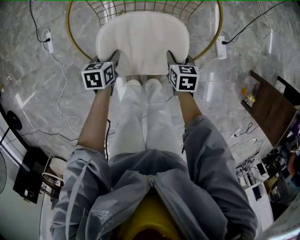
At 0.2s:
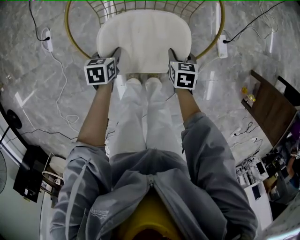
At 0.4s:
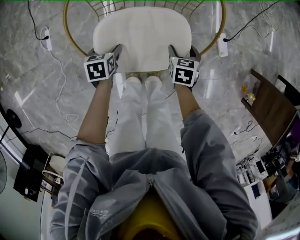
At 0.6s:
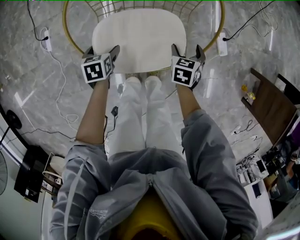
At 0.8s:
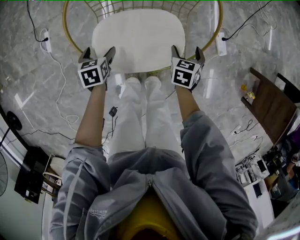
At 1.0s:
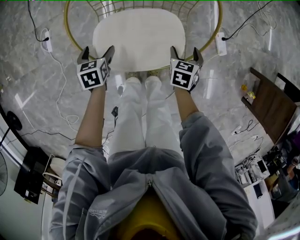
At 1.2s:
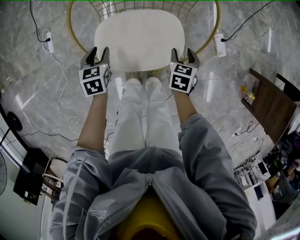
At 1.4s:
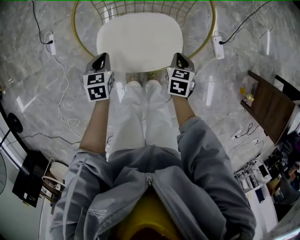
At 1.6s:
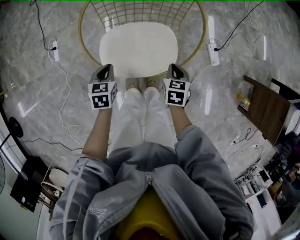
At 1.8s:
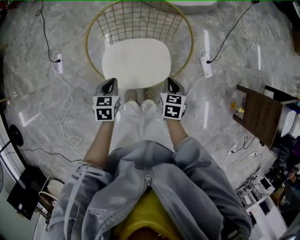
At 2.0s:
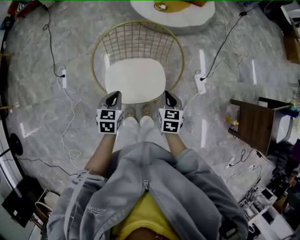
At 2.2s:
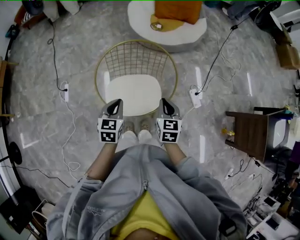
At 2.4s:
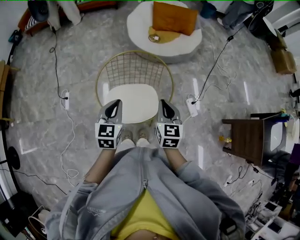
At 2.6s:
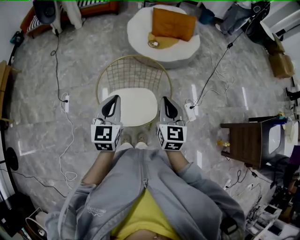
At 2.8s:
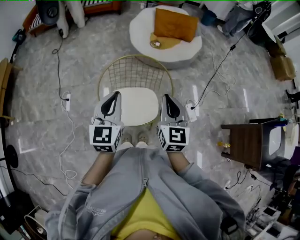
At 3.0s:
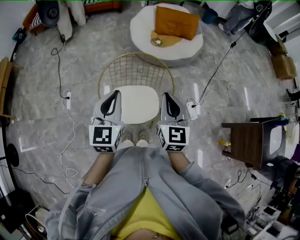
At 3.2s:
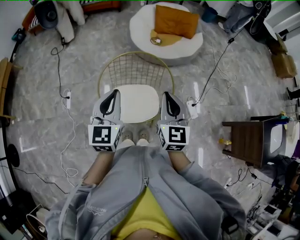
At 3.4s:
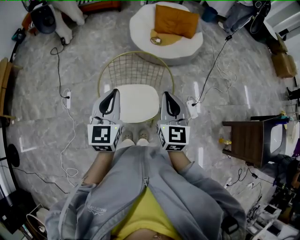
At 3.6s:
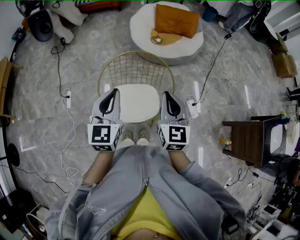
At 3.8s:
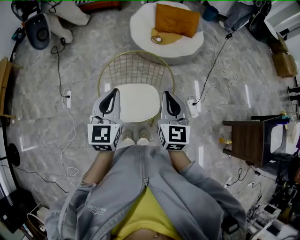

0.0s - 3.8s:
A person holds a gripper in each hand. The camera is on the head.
0.0s - 1.2s: The right gripper opens, then closes again; the left gripper shifts by approximately 5 cm, and opens and closes again.
1.2s - 2.6s: Both grippers move upward, about 40 cm. The left gripper points its fingers roughly 40 degrees further upward, and closes. Meanwhile the right gripper tips its fingers upward by about 40 degrees, and closes its fingers.
2.6s - 3.8s: The grippers make only small movements.

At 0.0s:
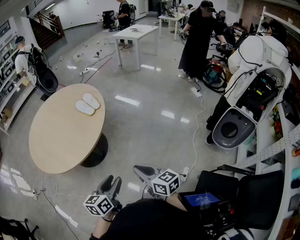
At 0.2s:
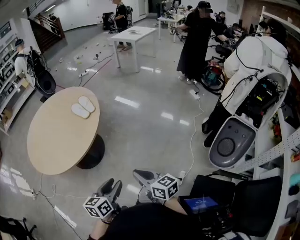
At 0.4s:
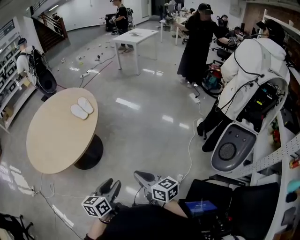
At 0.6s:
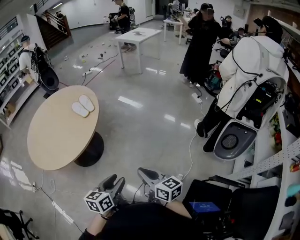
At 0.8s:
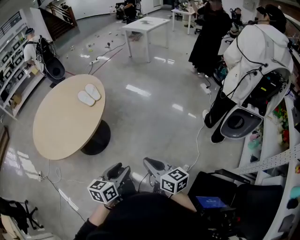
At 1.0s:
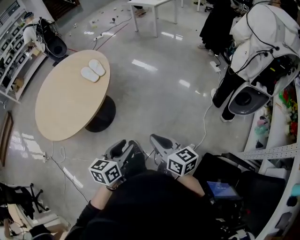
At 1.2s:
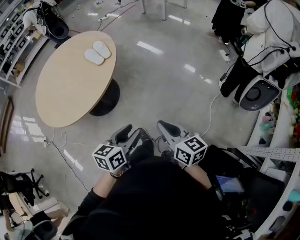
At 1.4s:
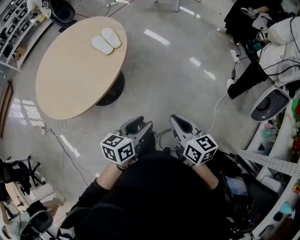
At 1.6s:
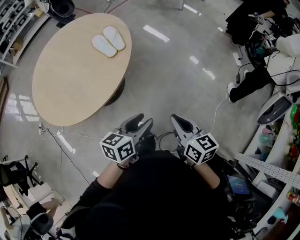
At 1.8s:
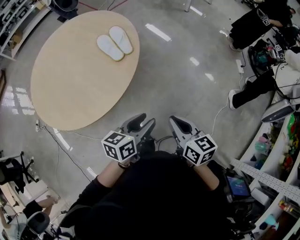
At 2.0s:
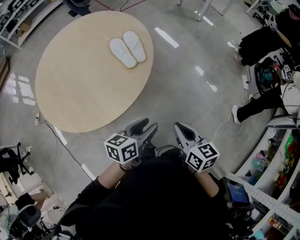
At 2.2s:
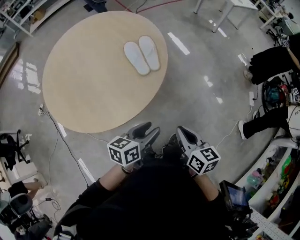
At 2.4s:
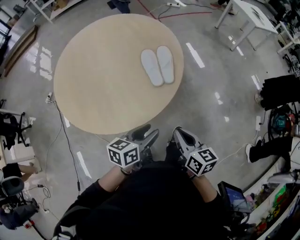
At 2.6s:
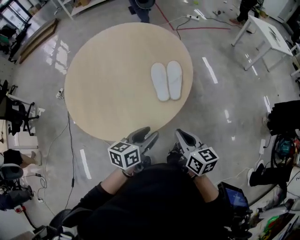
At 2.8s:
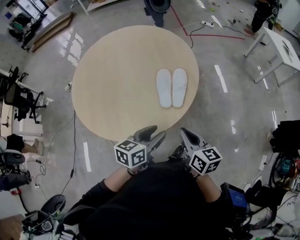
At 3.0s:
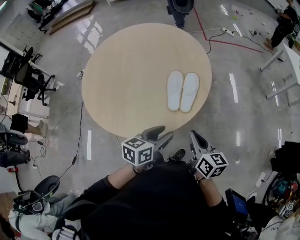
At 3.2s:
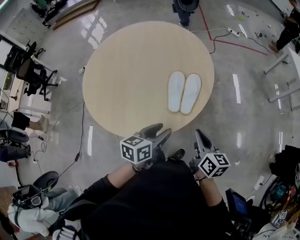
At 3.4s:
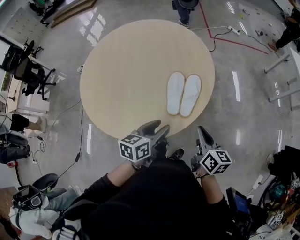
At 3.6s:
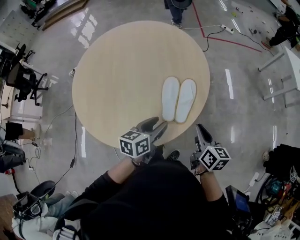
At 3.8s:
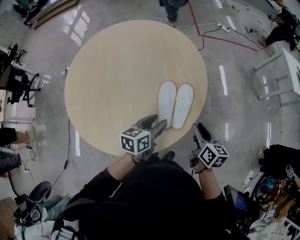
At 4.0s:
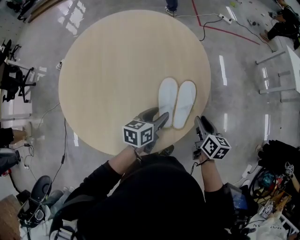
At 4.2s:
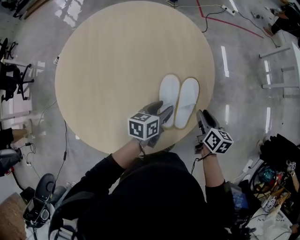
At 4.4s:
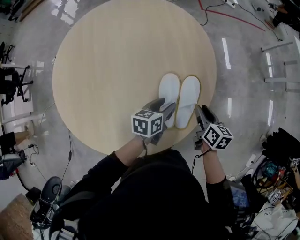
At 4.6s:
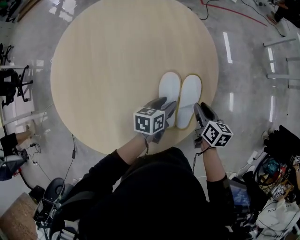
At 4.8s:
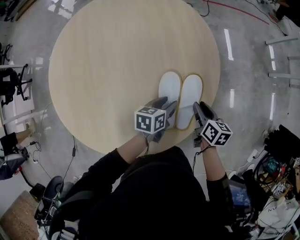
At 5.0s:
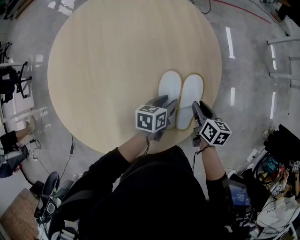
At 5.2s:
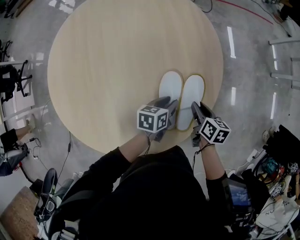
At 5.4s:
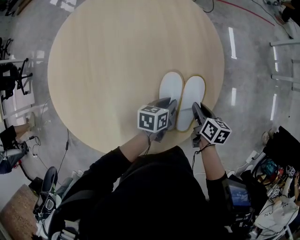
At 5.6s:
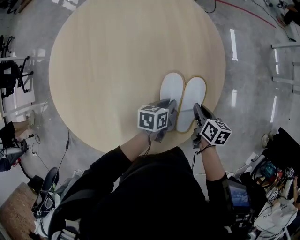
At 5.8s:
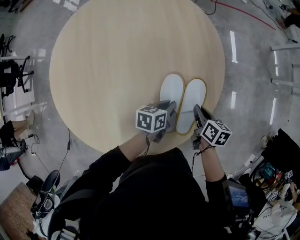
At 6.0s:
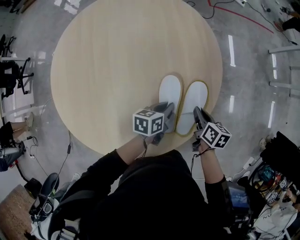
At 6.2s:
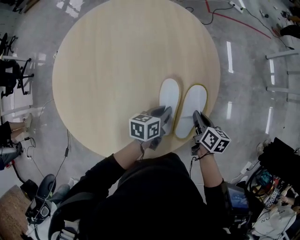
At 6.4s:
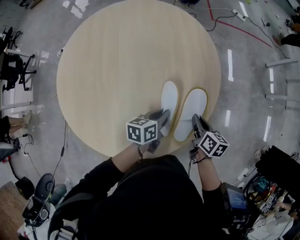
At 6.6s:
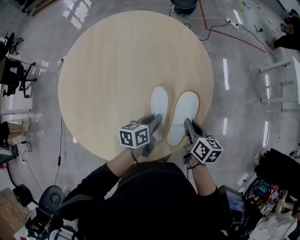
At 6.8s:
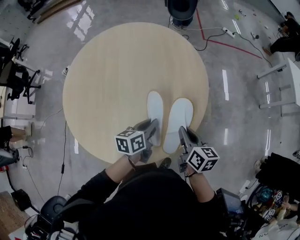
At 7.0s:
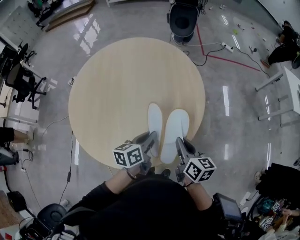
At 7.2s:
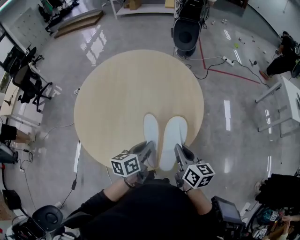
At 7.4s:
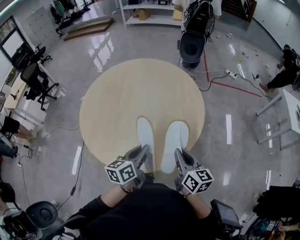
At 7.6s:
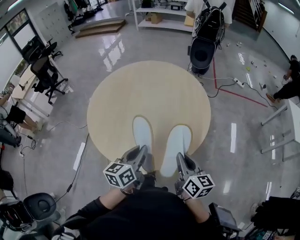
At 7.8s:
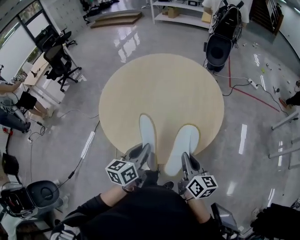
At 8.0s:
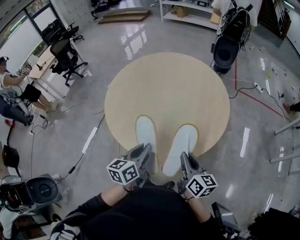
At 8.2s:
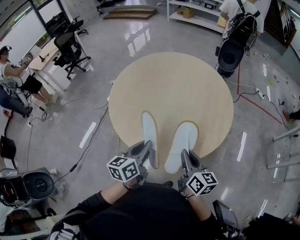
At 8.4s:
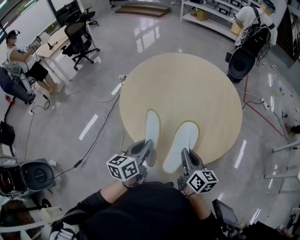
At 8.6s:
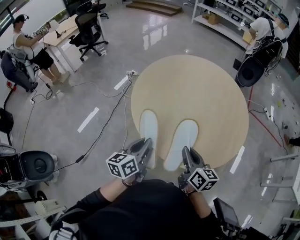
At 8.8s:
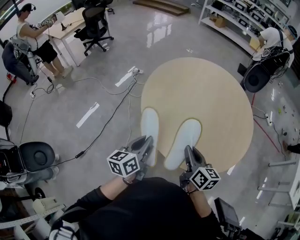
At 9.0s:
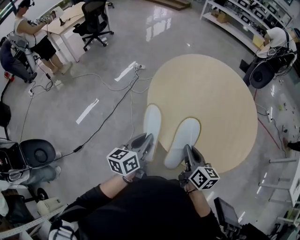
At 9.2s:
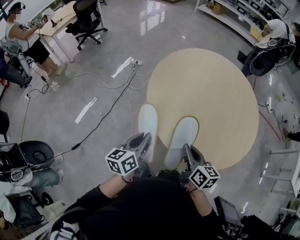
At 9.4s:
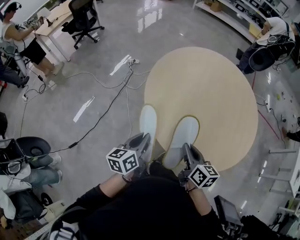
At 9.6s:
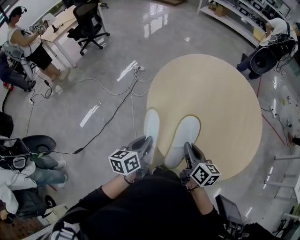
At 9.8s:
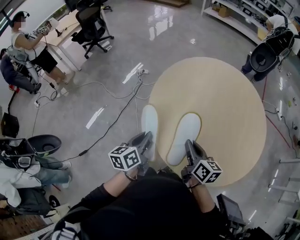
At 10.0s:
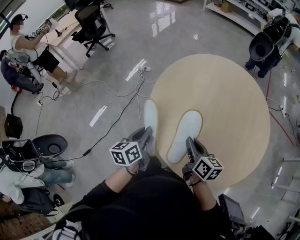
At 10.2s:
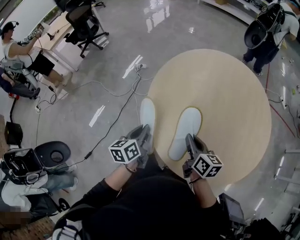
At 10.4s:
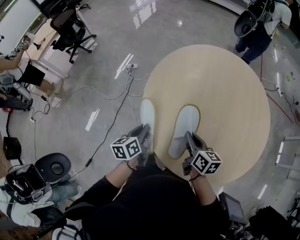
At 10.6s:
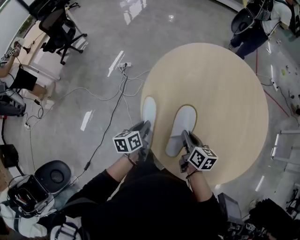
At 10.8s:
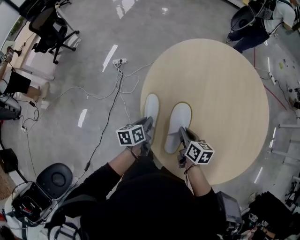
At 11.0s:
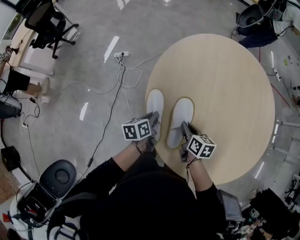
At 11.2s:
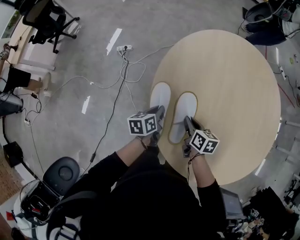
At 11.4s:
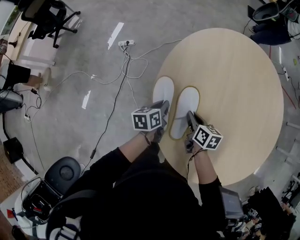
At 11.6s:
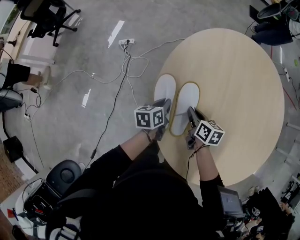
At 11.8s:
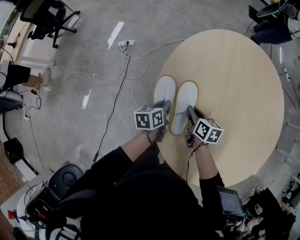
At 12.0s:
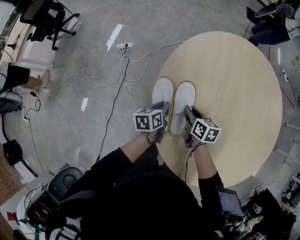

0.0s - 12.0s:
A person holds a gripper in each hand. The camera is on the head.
0.0s - 1.6s: Both grippers move forward, approximately 20 cm.
1.6s - 3.0s: The left gripper moves about 35 cm, and rotates some 40 degrees. Meanwhile the right gripper shifts by some 40 cm, and changes its angle by approximately 30 degrees.
3.0s - 4.4s: The grippers both shift forward and downward by roughly 35 cm. The right gripper changes its angle by roughly 20 degrees, and opens its fingers.
4.4s - 6.0s: The two grippers go about 5 cm downward. The left gripper closes; the right gripper closes up.
6.0s - 7.6s: The two grippers go roughly 25 cm upward. The left gripper changes its angle by roughly 40 degrees. The right gripper angles its fingers upward, by about 30 degrees.
7.6s - 9.0s: Both grippers move to the left, about 40 cm.
9.0s - 10.4s: The left gripper shifts approximately 25 cm forward and downward, while the right gripper heads forward, covering about 25 cm.
10.4s - 12.0s: The right gripper shifts approximately 30 cm forward, downward and to the left. The left gripper moves forward and downward, roughly 30 cm.

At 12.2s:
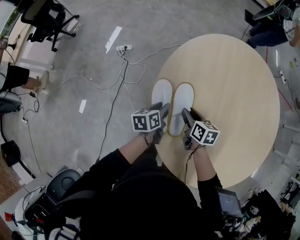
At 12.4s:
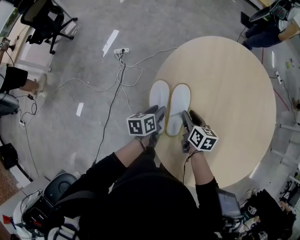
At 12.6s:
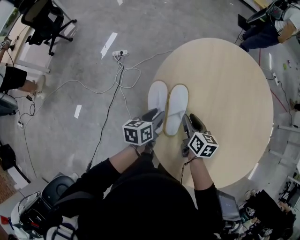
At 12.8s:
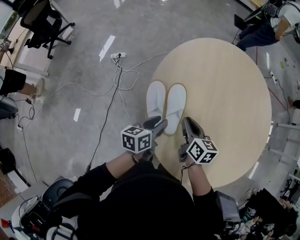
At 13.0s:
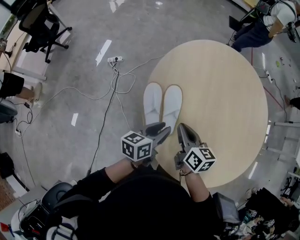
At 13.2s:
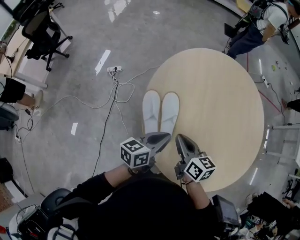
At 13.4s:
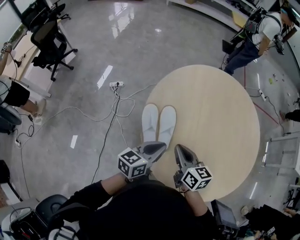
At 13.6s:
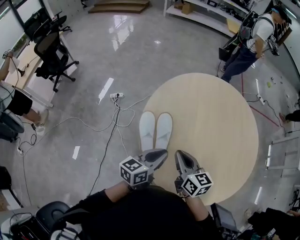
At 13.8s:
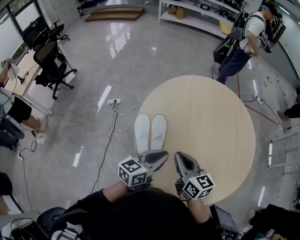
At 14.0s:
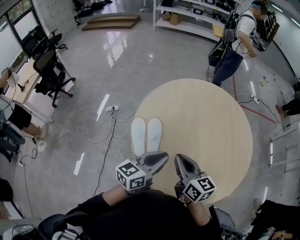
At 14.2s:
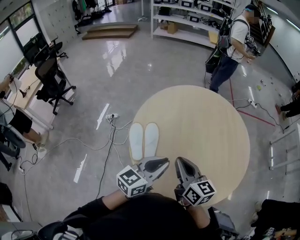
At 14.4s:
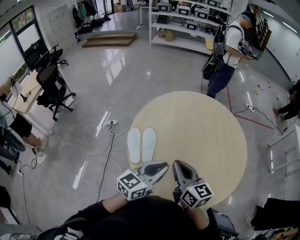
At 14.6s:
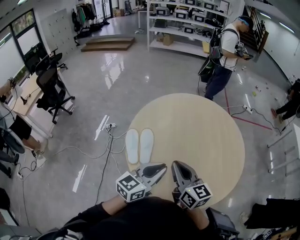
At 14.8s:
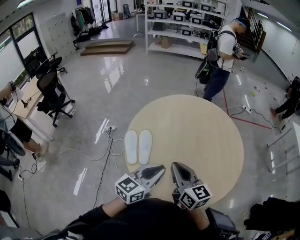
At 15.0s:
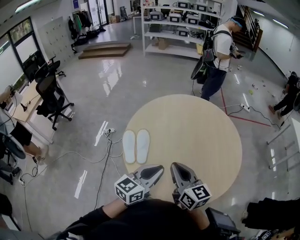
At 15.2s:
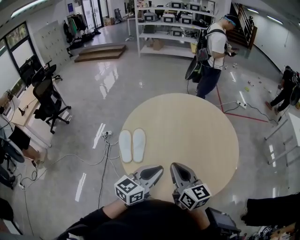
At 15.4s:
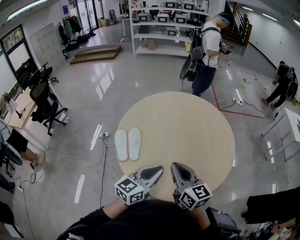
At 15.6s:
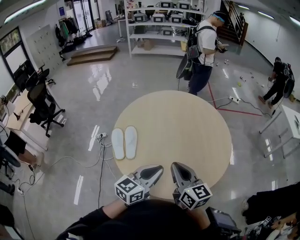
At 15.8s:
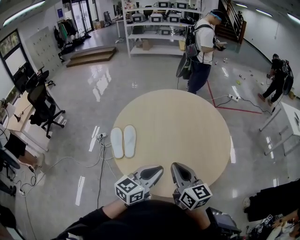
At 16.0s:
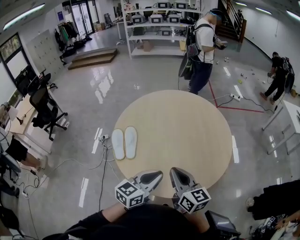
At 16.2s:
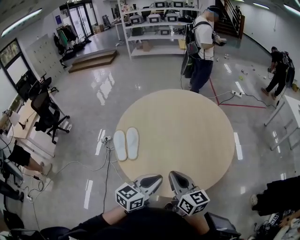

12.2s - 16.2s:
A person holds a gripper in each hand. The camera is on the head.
12.2s - 13.6s: The left gripper is displaced upward, backward and to the right by some 30 cm, turns by some 40 degrees, and closes. The right gripper goes some 25 cm upward and backward, turns by approximately 30 degrees, and closes its fingers.
13.6s - 14.8s: The two grippers go roughly 20 cm to the right, upward and backward. The left gripper swivels roughly 20 degrees.
14.8s - 16.2s: The two grippers go roughly 15 cm to the right and backward.

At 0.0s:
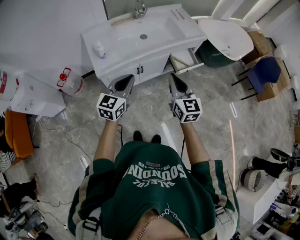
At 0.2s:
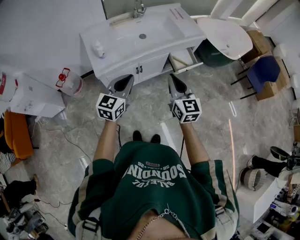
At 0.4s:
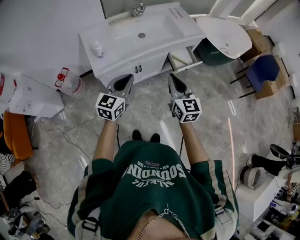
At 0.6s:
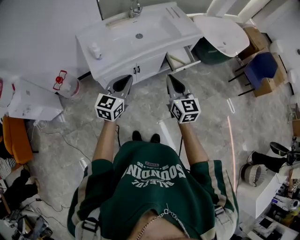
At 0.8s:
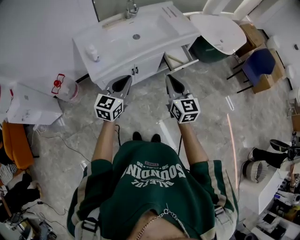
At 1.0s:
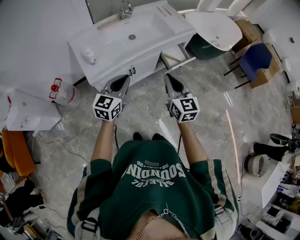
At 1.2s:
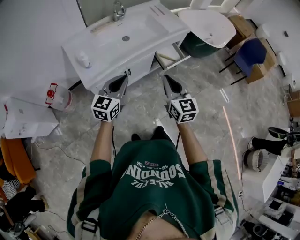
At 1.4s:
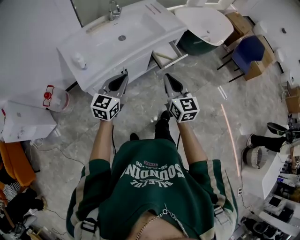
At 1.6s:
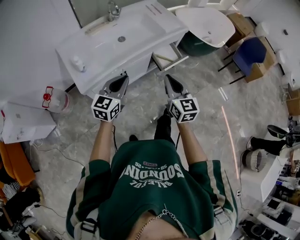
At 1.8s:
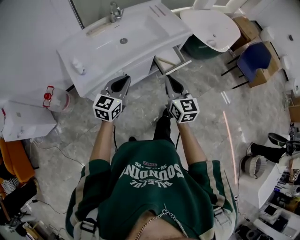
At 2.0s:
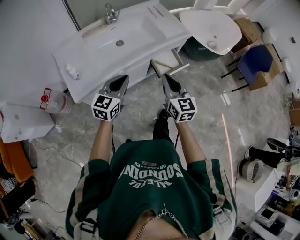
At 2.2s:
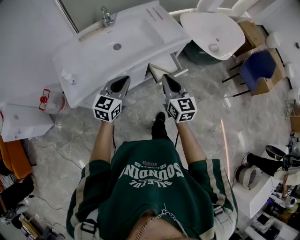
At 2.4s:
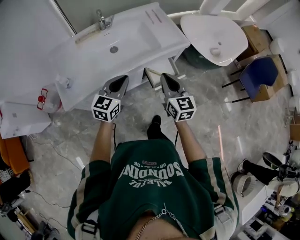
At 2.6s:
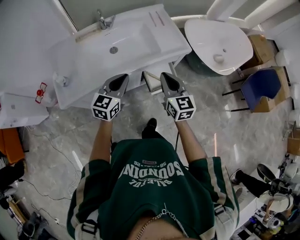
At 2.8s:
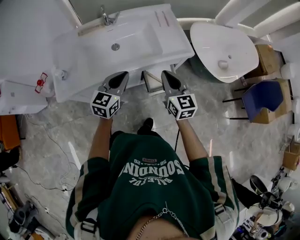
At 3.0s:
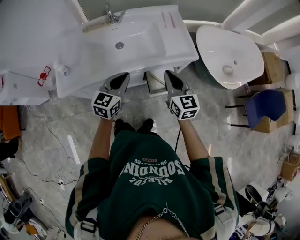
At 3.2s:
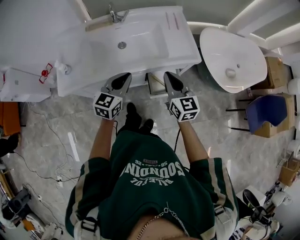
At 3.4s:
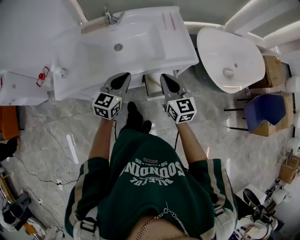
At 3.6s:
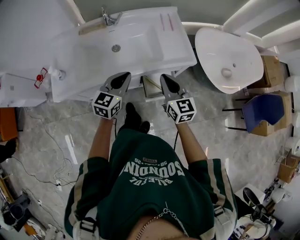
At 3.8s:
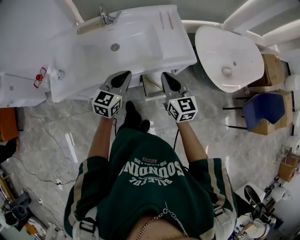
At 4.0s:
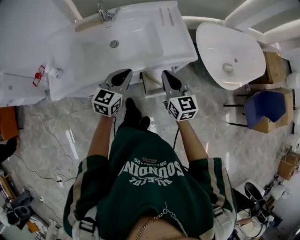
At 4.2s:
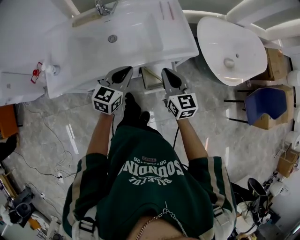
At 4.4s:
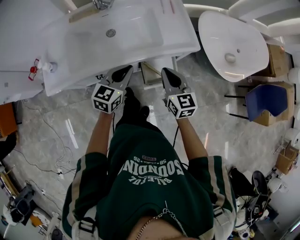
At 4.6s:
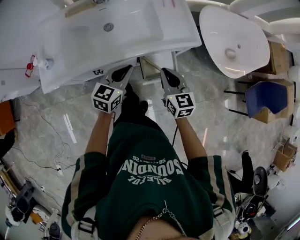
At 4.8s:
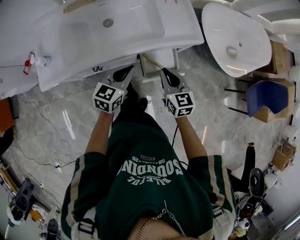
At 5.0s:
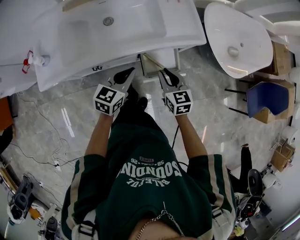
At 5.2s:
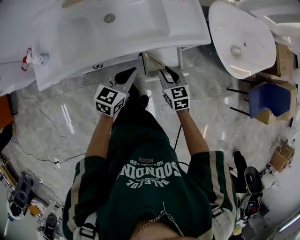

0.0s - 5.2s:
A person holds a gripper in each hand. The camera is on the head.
0.0s - 1.8s: Both grippers travel together forward, about 10 cm.
1.8s - 3.4s: Both grippers move forward and to the right, about 30 cm. The right gripper rotates about 30 degrees. Meanwhile the left gripper swivels roughly 20 degrees.
3.4s - 5.2s: The left gripper shifts roughly 10 cm downward; the right gripper shifts about 20 cm downward, rotates some 30 degrees, and opens up.
